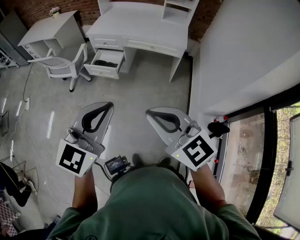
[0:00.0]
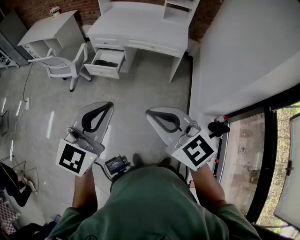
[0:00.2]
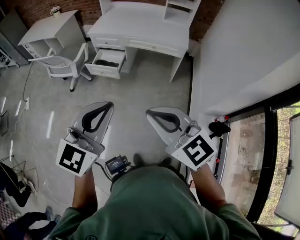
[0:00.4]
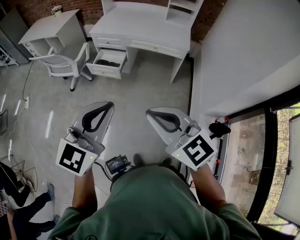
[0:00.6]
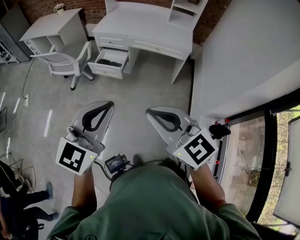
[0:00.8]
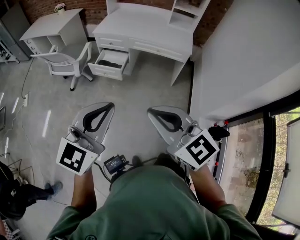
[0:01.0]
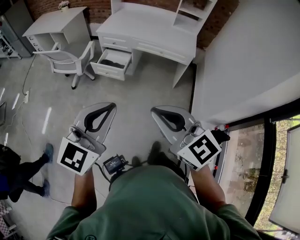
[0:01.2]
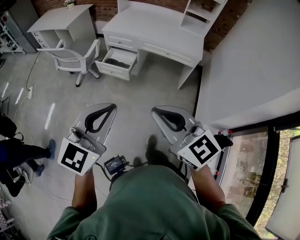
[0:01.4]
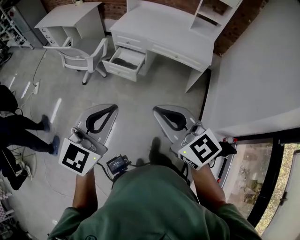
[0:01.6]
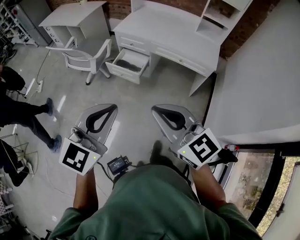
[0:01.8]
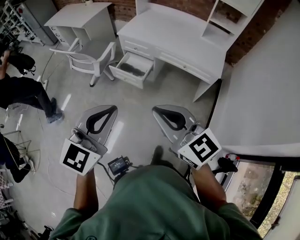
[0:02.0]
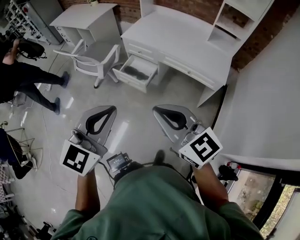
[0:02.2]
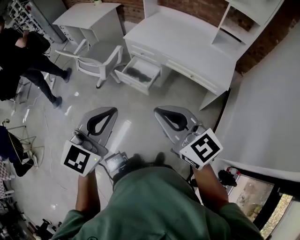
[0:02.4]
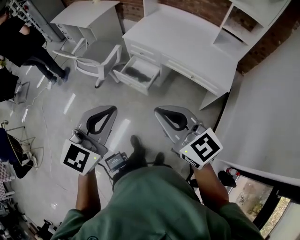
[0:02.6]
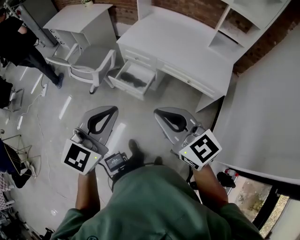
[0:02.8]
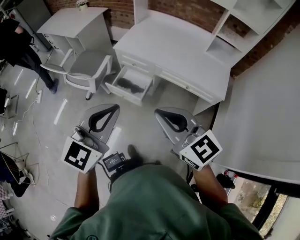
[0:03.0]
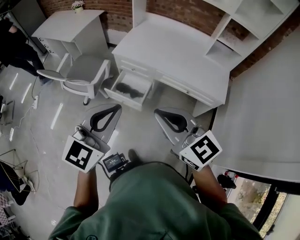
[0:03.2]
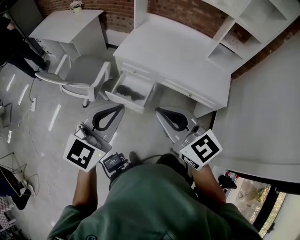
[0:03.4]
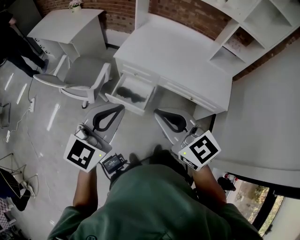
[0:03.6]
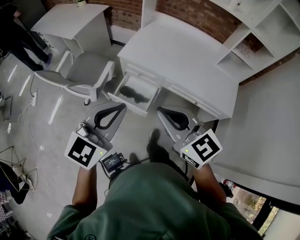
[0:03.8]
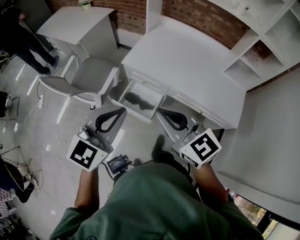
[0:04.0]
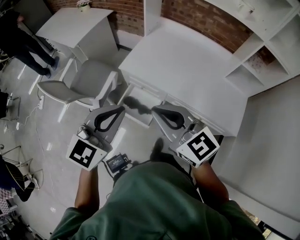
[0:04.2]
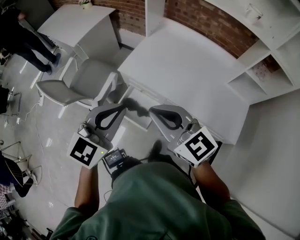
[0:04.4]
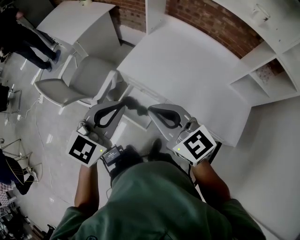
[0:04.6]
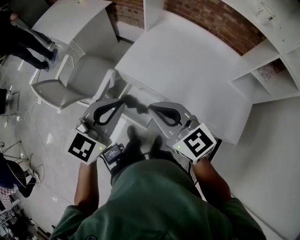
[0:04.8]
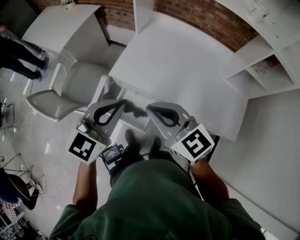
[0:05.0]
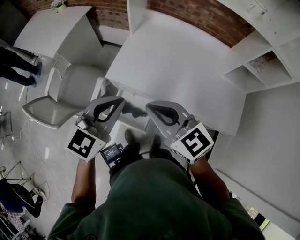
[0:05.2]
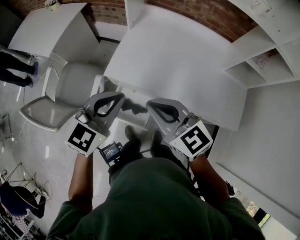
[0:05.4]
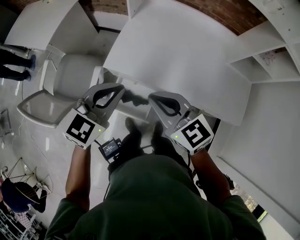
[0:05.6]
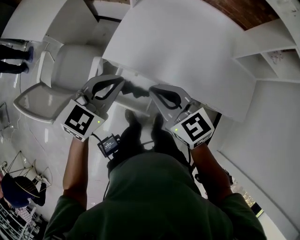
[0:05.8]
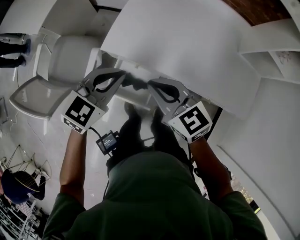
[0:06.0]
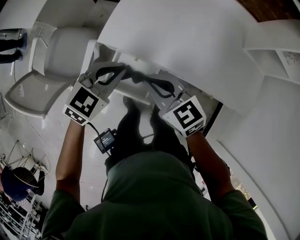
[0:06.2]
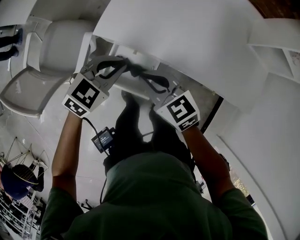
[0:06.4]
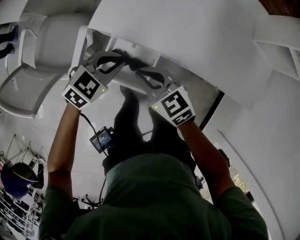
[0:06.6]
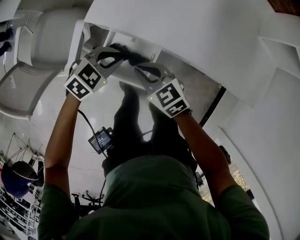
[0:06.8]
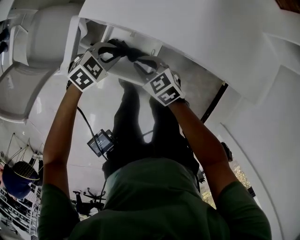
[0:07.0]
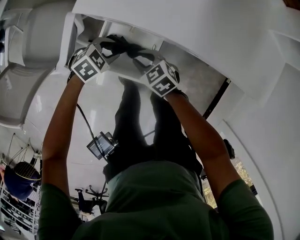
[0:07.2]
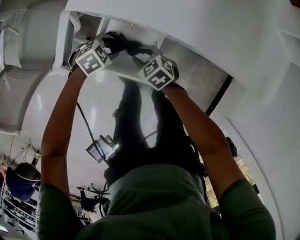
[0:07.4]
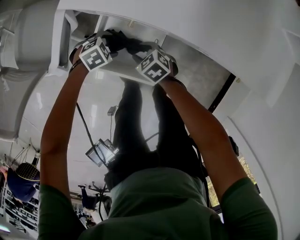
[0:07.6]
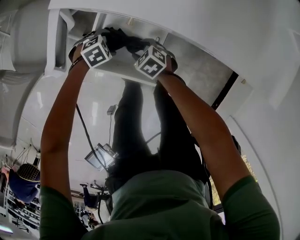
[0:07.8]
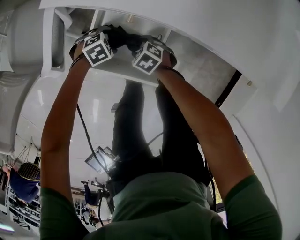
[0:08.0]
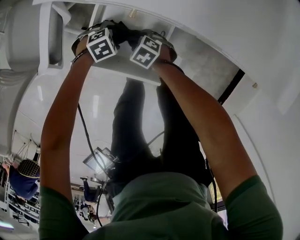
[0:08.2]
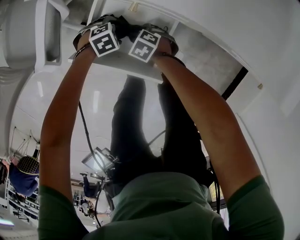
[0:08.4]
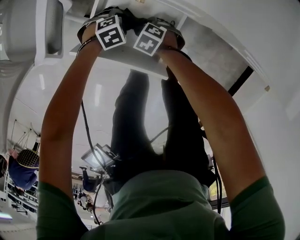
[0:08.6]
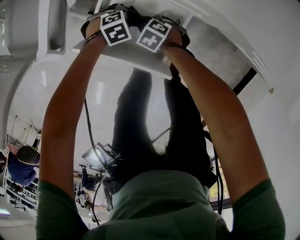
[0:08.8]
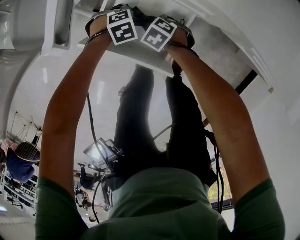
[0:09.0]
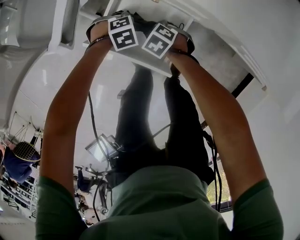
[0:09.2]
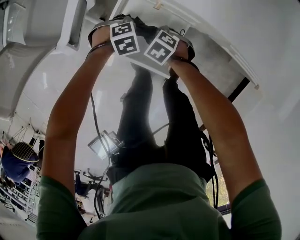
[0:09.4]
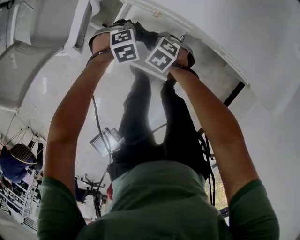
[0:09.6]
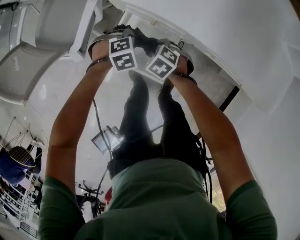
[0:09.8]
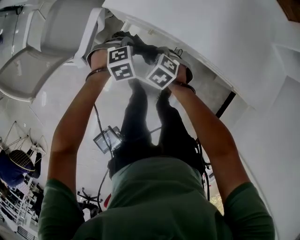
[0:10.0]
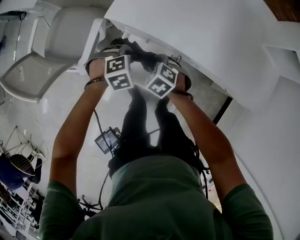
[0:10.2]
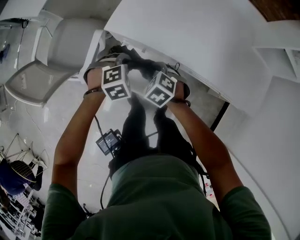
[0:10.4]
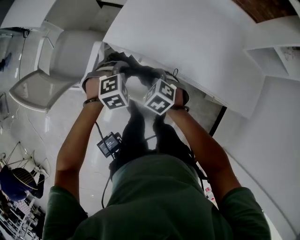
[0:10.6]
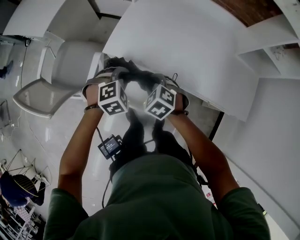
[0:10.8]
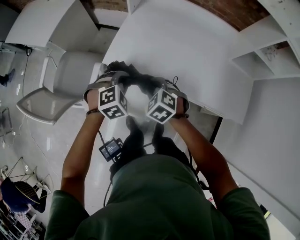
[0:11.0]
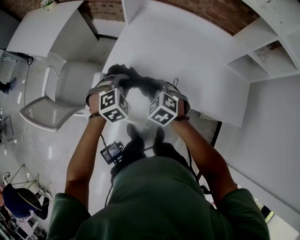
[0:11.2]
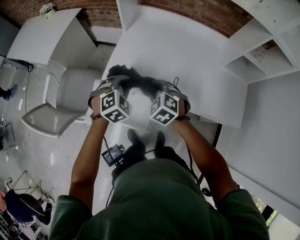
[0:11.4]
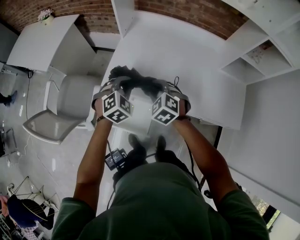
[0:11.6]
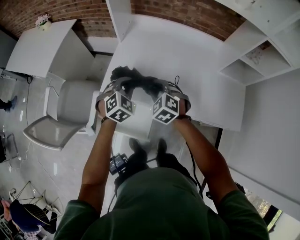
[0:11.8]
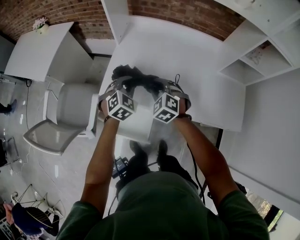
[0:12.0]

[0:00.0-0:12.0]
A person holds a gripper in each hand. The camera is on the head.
0:00.0 to 0:01.6: The right gripper shifts about 15 cm forward and to the left. Meanwhile the left gripper goes roughly 10 cm to the left and forward.
0:01.6 to 0:03.0: The two grippers go some 30 cm forward.
0:03.0 to 0:04.4: The two grippers go roughly 35 cm forward.
0:04.4 to 0:06.0: The right gripper heads downward and forward, covering approximately 25 cm; the left gripper is displaced forward and downward by roughly 25 cm, and rotates roughly 20 degrees.
0:06.0 to 0:07.6: The grippers both shift downward by about 50 cm. The left gripper tilts its fingers about 40 degrees downward, and opens its fingers, while the right gripper tilts its fingers about 40 degrees downward, and opens its fingers.
0:07.6 to 0:09.0: The grippers both shift downward by some 15 cm. The right gripper rotates about 20 degrees, while the left gripper closes its fingers.
0:09.0 to 0:10.4: Both grippers travel together upward, approximately 40 cm. The left gripper swivels some 20 degrees.
0:10.4 to 0:12.0: The two grippers go roughly 30 cm upward, forward and to the right. The right gripper swivels approximately 30 degrees. Meanwhile the left gripper swivels roughly 30 degrees.

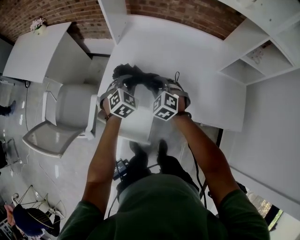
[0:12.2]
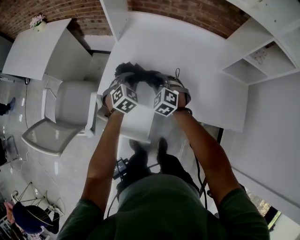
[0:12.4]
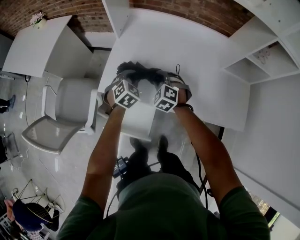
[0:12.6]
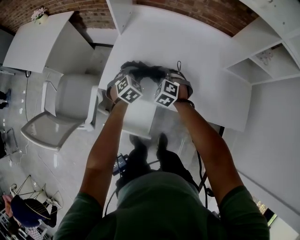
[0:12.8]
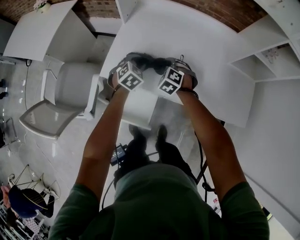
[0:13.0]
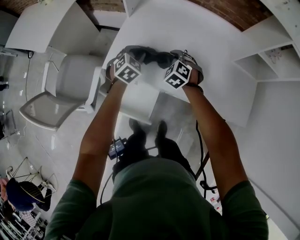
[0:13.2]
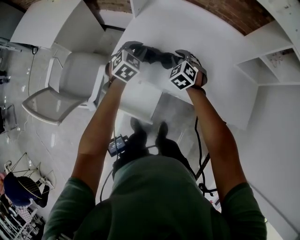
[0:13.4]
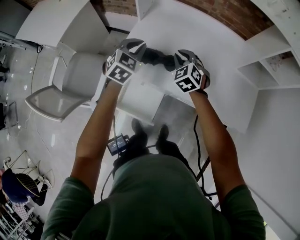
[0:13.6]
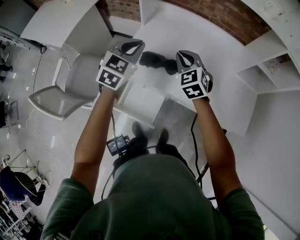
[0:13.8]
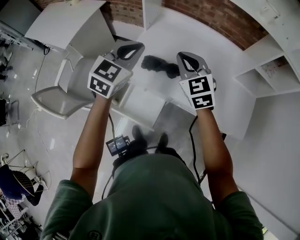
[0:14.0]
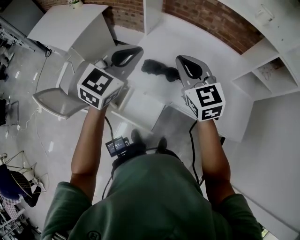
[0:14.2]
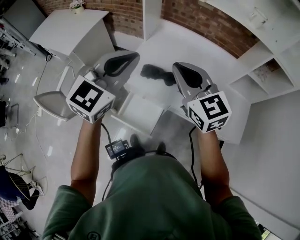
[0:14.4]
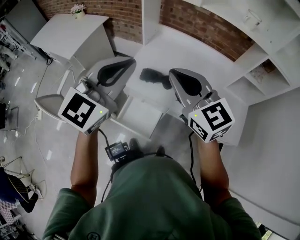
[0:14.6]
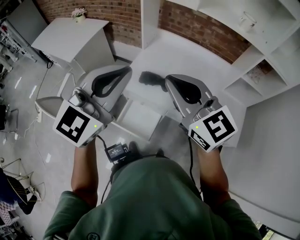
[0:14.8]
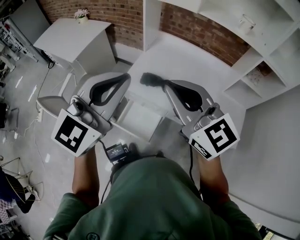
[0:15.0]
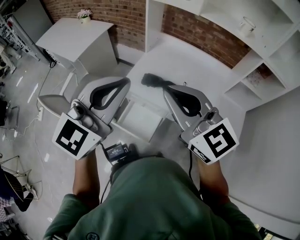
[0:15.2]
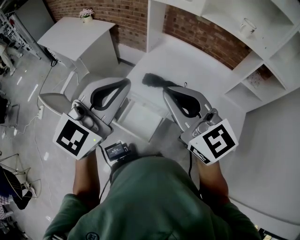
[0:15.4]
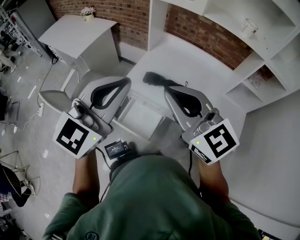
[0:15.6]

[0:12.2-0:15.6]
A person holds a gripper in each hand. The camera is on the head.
0:12.2 to 0:13.8: Both grippers move upward, approximately 15 cm. The left gripper swivels some 20 degrees.
0:13.8 to 0:15.6: The right gripper travels upward and backward by roughly 40 cm, and rotates roughly 40 degrees; the left gripper moves backward and upward, roughly 35 cm, and swivels about 20 degrees.

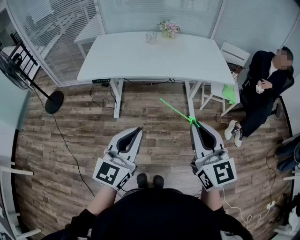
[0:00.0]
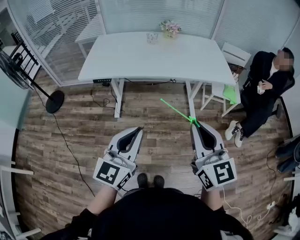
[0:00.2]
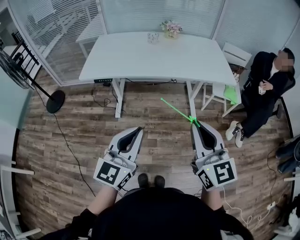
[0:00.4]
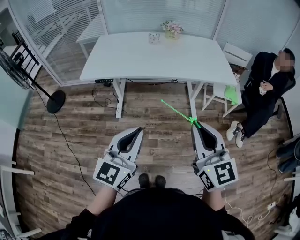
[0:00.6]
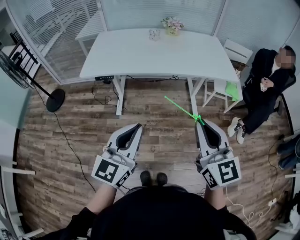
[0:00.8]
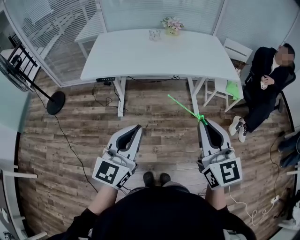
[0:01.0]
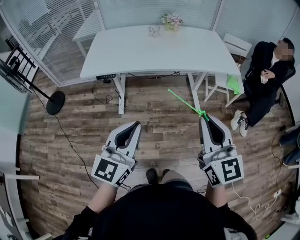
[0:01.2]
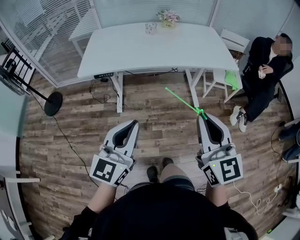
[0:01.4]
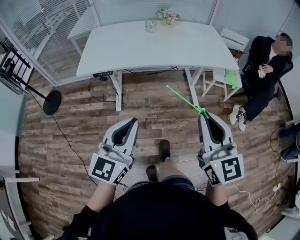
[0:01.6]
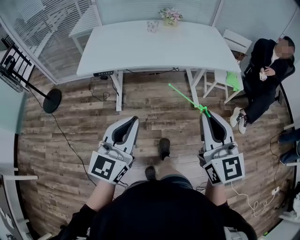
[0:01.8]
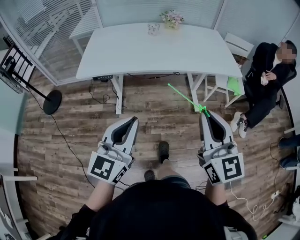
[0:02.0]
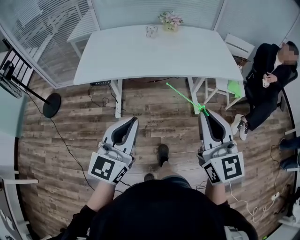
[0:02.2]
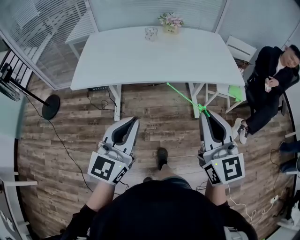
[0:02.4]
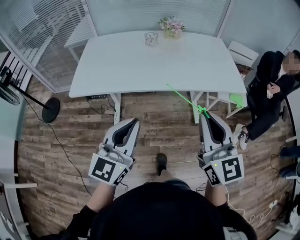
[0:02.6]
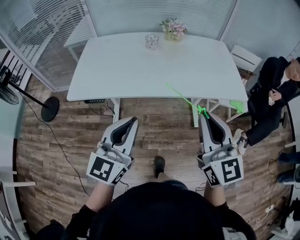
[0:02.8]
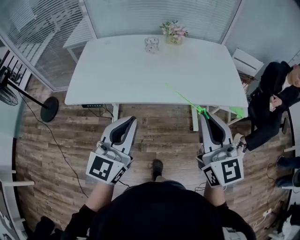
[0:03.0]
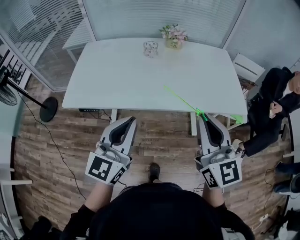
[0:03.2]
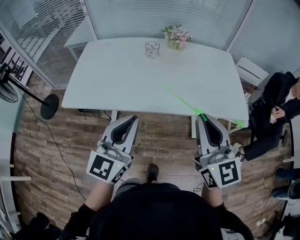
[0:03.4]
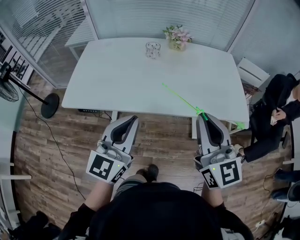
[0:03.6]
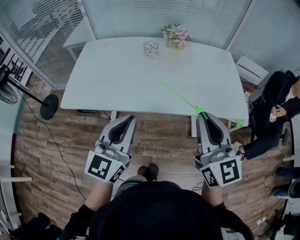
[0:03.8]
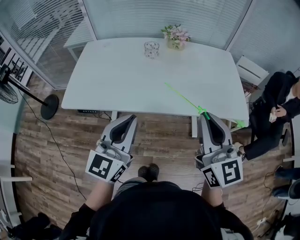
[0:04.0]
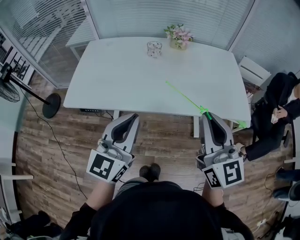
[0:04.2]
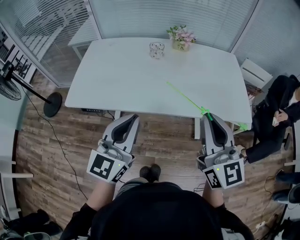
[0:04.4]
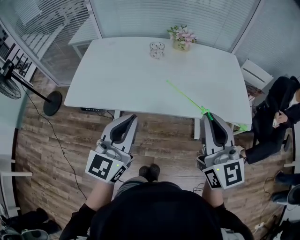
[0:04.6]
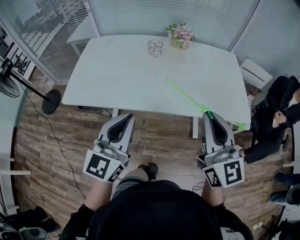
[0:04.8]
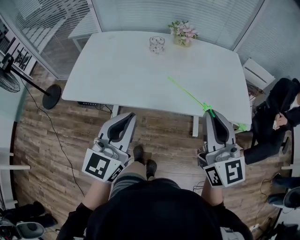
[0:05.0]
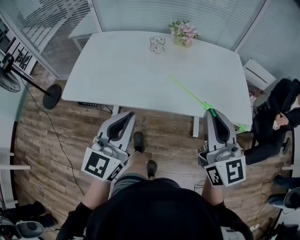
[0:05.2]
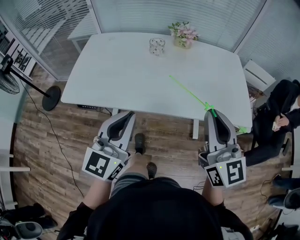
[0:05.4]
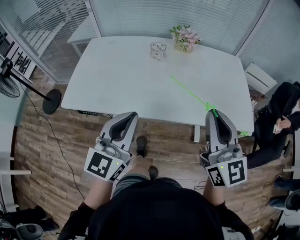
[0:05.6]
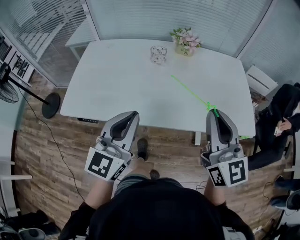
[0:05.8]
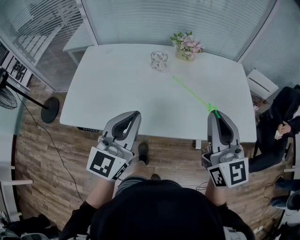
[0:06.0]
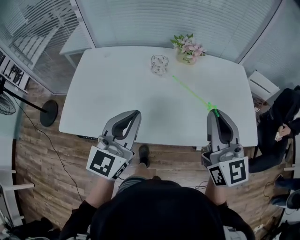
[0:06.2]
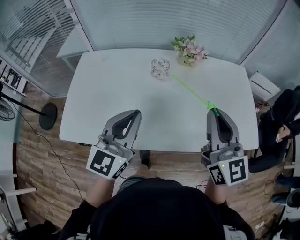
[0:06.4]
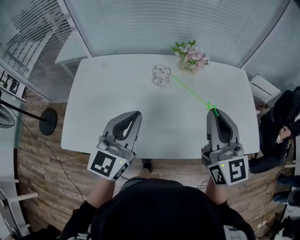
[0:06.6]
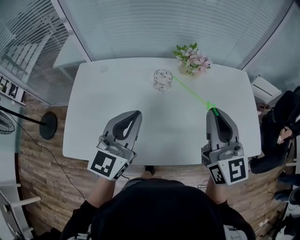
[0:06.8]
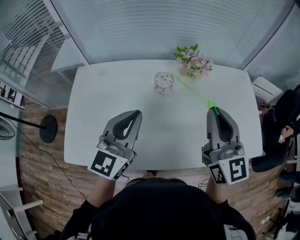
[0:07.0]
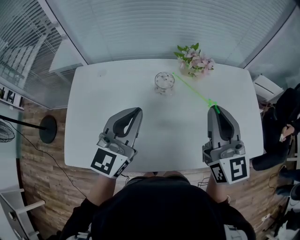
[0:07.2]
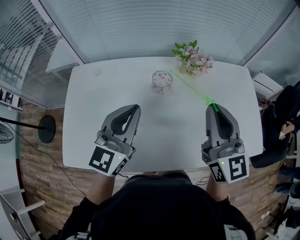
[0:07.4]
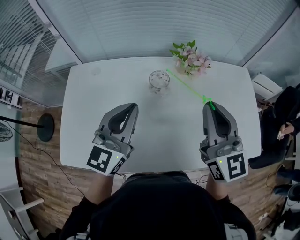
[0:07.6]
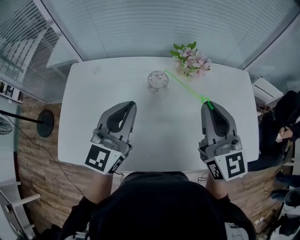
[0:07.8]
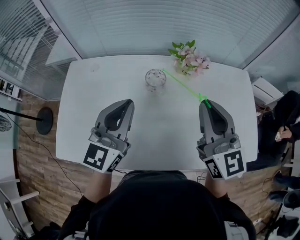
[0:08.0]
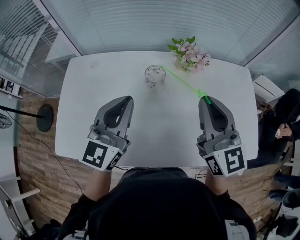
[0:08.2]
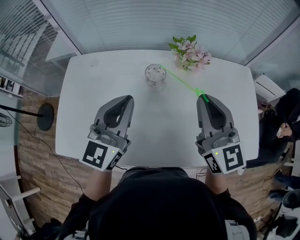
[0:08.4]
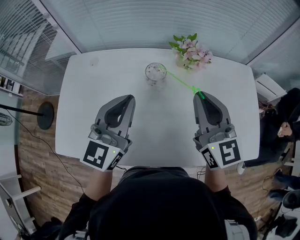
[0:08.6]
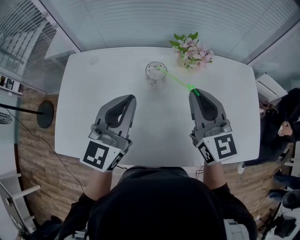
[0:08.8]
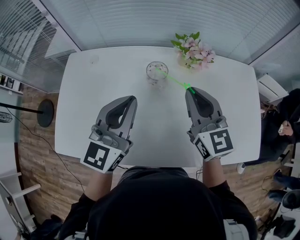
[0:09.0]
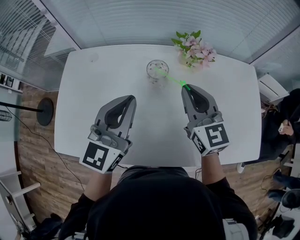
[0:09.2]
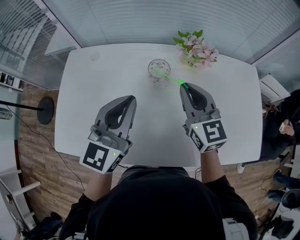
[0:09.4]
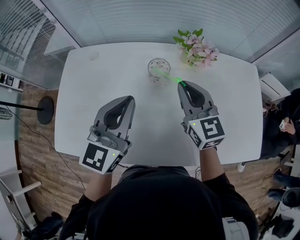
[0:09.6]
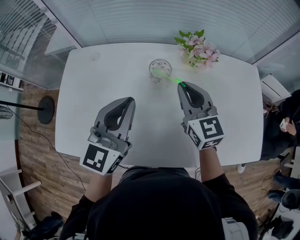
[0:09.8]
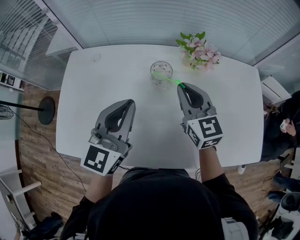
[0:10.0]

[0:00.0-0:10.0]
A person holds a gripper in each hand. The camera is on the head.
0:00.0 to 0:01.4: The left gripper travels to the left by approximately 5 cm. The right gripper ends up roughly 5 cm from where it was.
0:01.4 to 0:02.8: Both grippers travel together forward, roughly 20 cm.
0:02.8 to 0:04.2: Both grippers travel together forward, about 10 cm.
0:04.2 to 0:05.8: Both grippers move forward, roughly 10 cm.
0:05.8 to 0:07.2: The right gripper heads forward and to the left, covering about 25 cm; the left gripper is displaced forward by some 25 cm.
0:07.2 to 0:08.6: The right gripper changes place by approximately 5 cm.
0:08.6 to 0:10.0: The right gripper is displaced downward, forward and to the left by about 15 cm.
